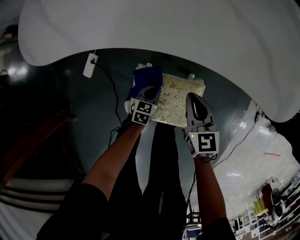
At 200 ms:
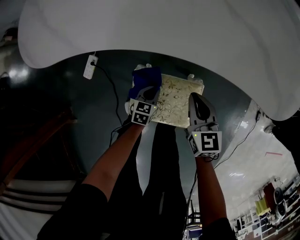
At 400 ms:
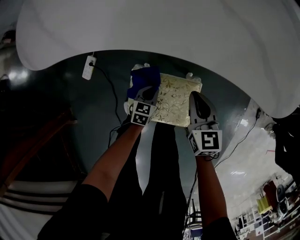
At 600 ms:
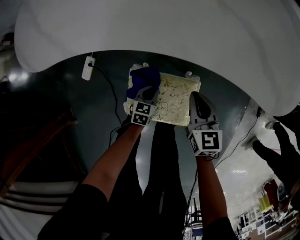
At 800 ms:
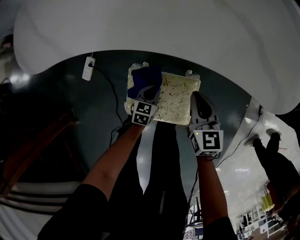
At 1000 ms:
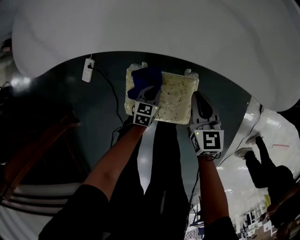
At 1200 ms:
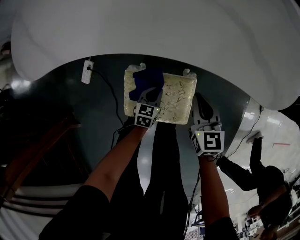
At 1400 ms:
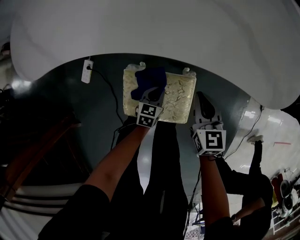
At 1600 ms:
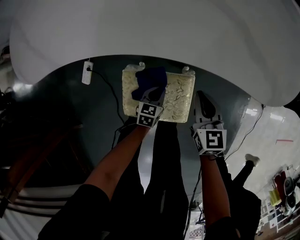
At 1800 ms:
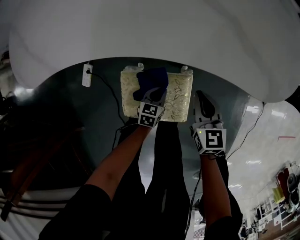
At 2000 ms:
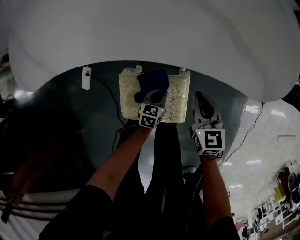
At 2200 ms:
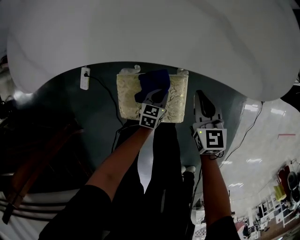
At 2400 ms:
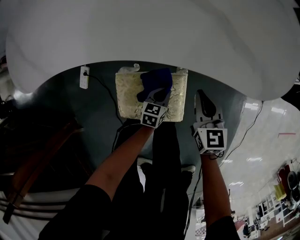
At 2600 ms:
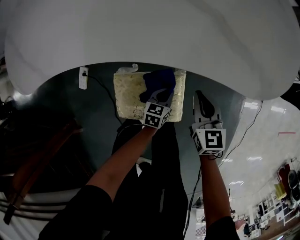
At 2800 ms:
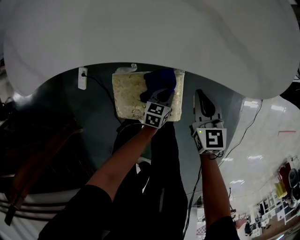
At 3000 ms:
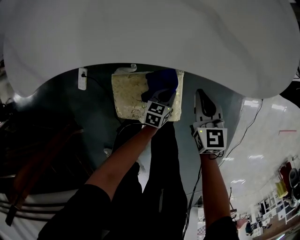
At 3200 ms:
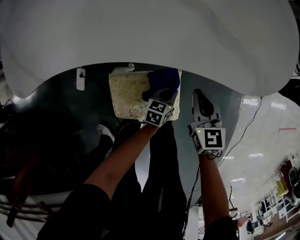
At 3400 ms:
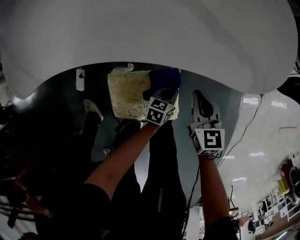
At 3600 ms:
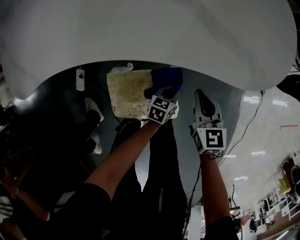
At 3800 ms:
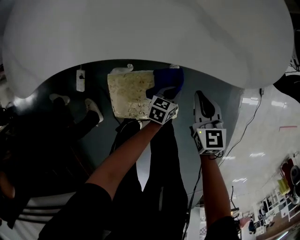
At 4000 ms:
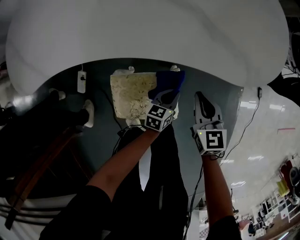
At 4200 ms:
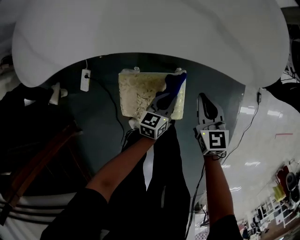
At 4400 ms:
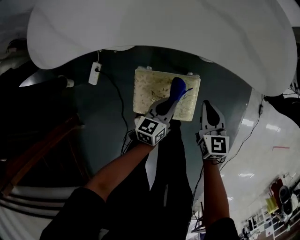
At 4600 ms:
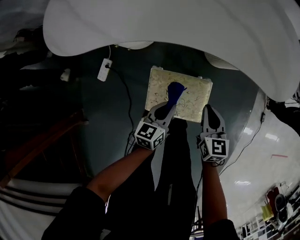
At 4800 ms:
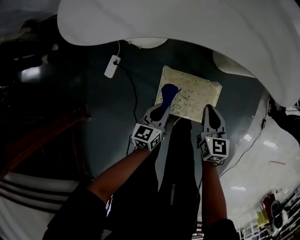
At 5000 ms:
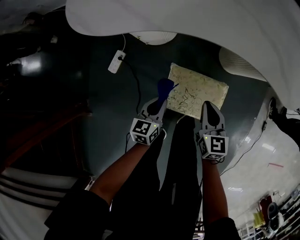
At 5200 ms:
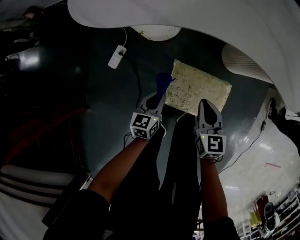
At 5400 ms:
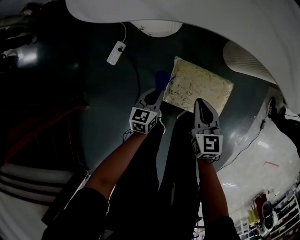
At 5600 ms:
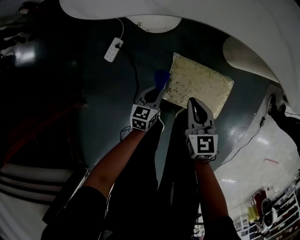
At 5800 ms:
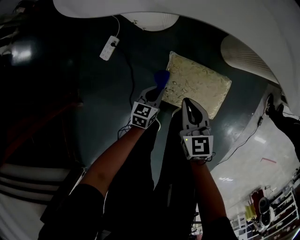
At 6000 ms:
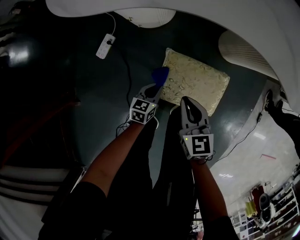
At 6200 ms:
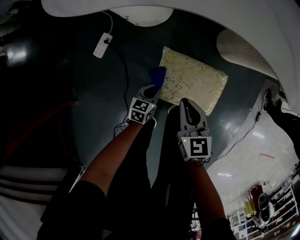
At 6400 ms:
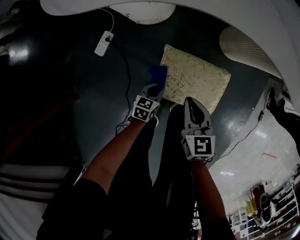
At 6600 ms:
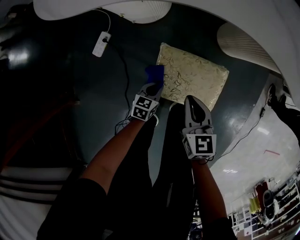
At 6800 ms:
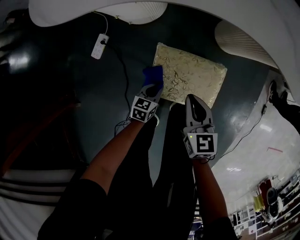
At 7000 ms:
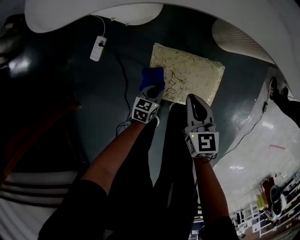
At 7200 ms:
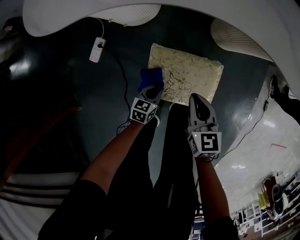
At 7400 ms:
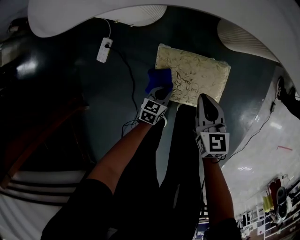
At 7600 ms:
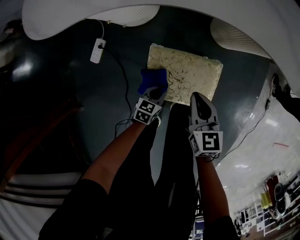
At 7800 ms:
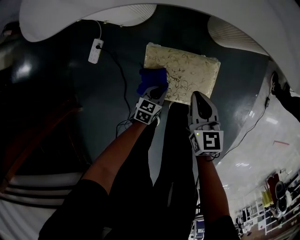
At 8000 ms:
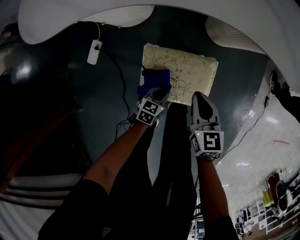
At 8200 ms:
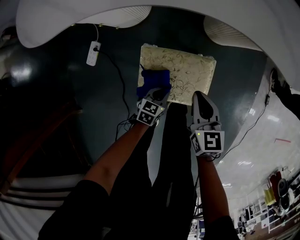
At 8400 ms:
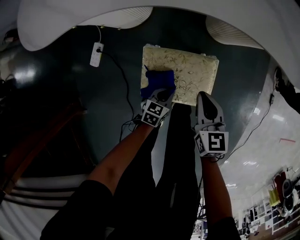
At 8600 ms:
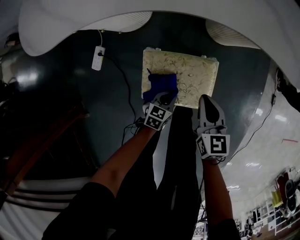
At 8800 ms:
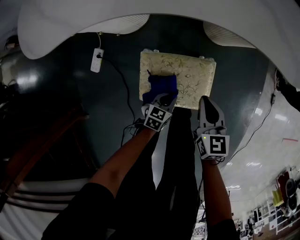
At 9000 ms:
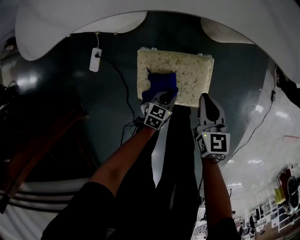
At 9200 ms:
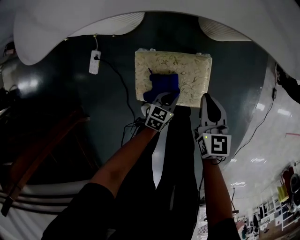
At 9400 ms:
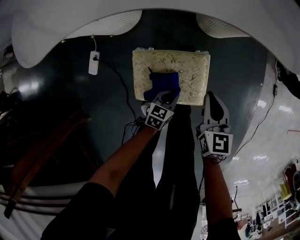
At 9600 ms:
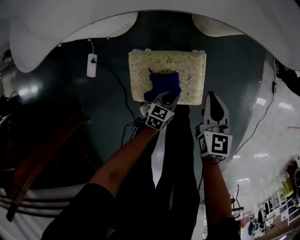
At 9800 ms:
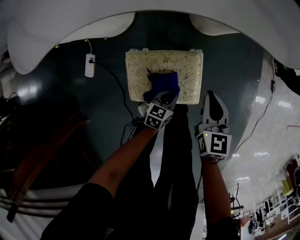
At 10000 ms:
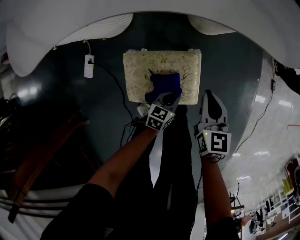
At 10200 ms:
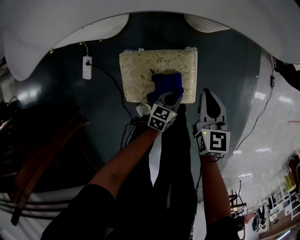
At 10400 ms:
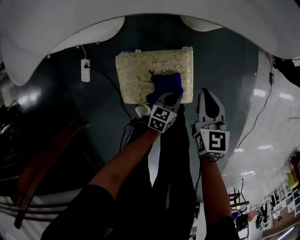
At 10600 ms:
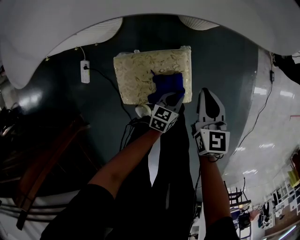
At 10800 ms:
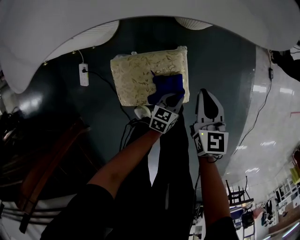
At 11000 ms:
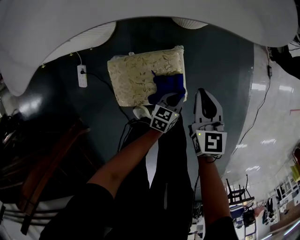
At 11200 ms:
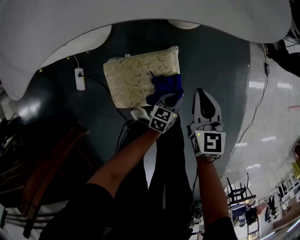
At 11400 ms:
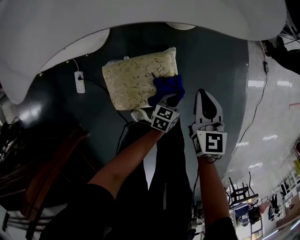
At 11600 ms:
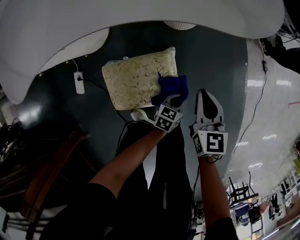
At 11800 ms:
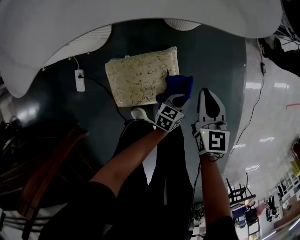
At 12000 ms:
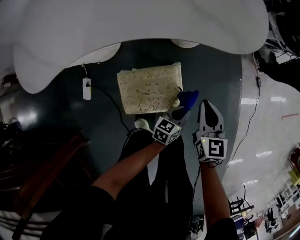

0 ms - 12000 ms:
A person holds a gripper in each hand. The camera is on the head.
0 ms - 1600 ms: Both grippers move to the right, about 10 cm.
1600 ms - 3000 ms: The left gripper heads to the right, covering some 10 cm, while the right gripper is displaced to the right by about 5 cm.
3000 ms - 4400 ms: The left gripper is displaced upward and to the left by roughly 15 cm, and rotates roughly 20 degrees. The right gripper moves backward, approximately 5 cm.
4400 ms - 6000 ms: The left gripper is displaced to the left and downward by approximately 25 cm, while the right gripper heads to the left, covering about 25 cm.
6000 ms - 7600 ms: Both grippers move to the right, some 10 cm.
7600 ms - 9000 ms: The grippers both shift to the right by approximately 10 cm.
9000 ms - 10400 ms: Both grippers travel together to the right, about 10 cm.
10400 ms - 12000 ms: The right gripper is displaced upward by roughly 10 cm. Meanwhile the left gripper is displaced upward and to the right by roughly 15 cm.

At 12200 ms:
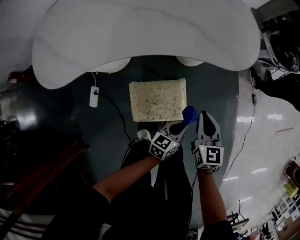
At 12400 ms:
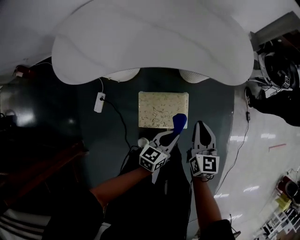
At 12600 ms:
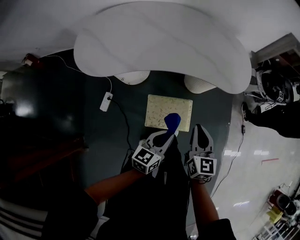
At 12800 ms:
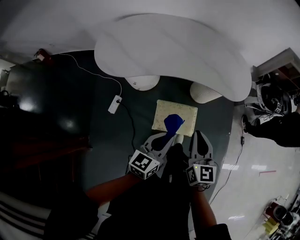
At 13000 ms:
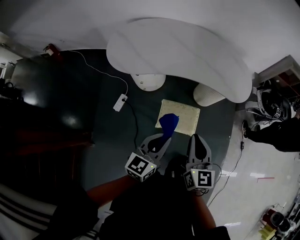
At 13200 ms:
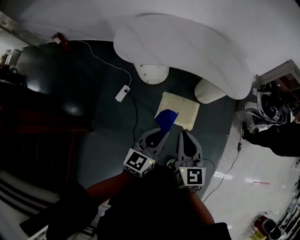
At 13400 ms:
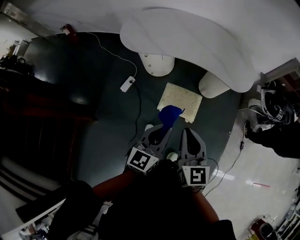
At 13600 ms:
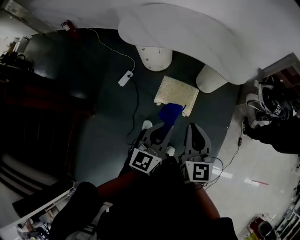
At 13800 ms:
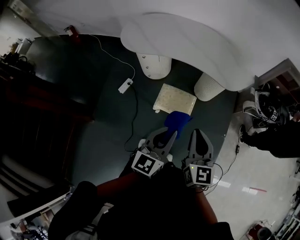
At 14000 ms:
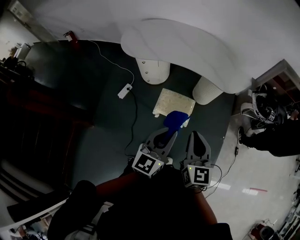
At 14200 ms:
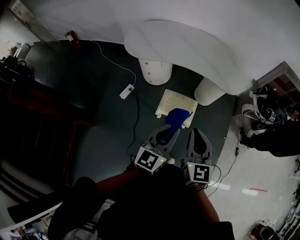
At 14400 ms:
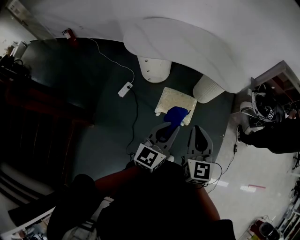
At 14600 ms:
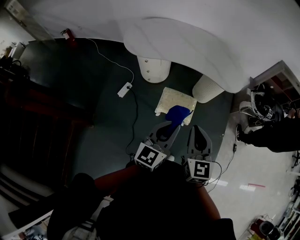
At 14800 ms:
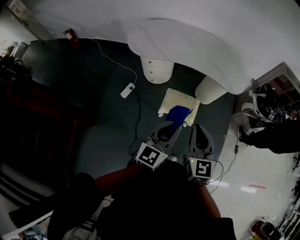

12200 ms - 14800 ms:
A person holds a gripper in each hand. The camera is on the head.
12200 ms - 13400 ms: The grippers both shift upward by approximately 40 cm. The left gripper swivels approximately 50 degrees, while the right gripper rotates approximately 30 degrees.
13400 ms - 14800 ms: The left gripper shifts about 10 cm upward and backward, and reaches about 5 cm to the right, then returns. Meanwhile the right gripper travels backward by some 5 cm, and moves roughly 10 cm to the right and comes back.

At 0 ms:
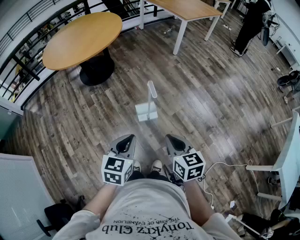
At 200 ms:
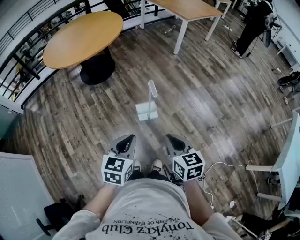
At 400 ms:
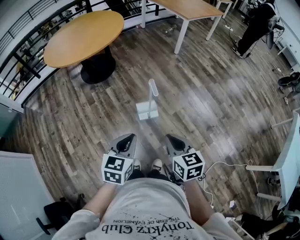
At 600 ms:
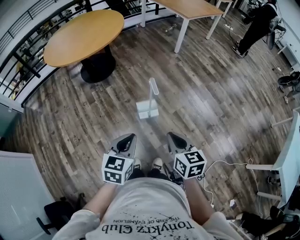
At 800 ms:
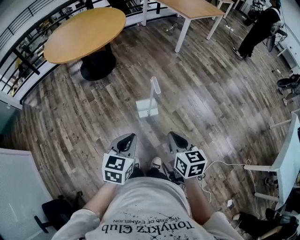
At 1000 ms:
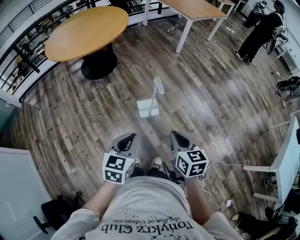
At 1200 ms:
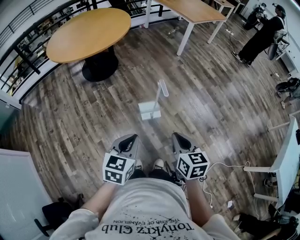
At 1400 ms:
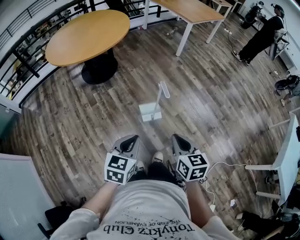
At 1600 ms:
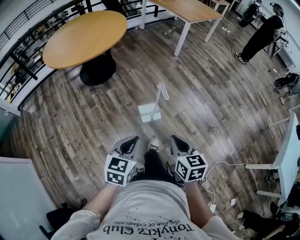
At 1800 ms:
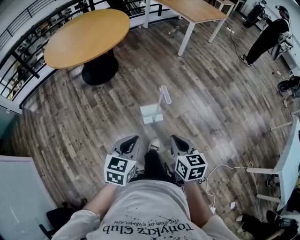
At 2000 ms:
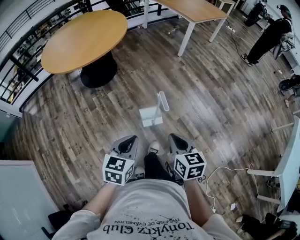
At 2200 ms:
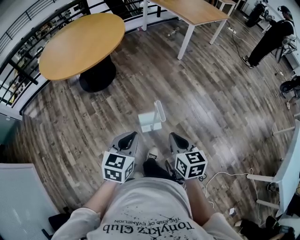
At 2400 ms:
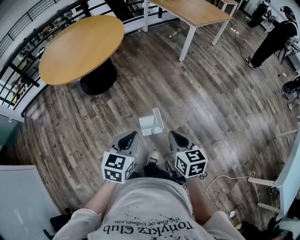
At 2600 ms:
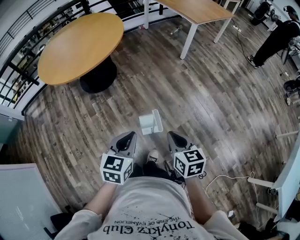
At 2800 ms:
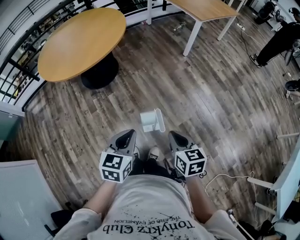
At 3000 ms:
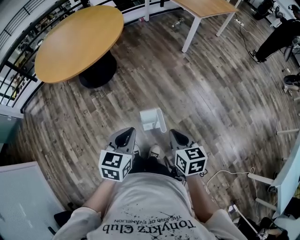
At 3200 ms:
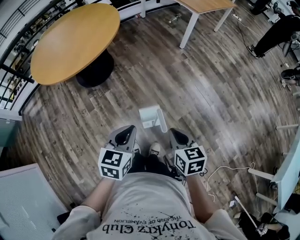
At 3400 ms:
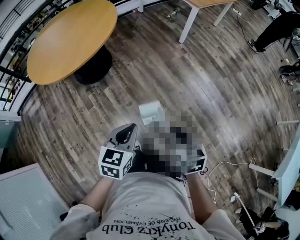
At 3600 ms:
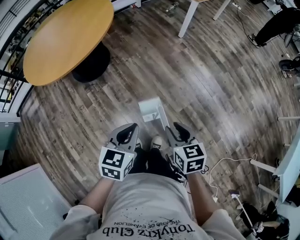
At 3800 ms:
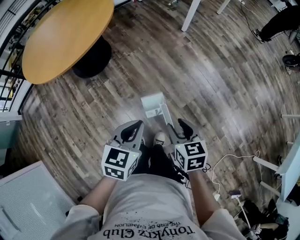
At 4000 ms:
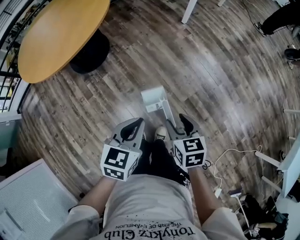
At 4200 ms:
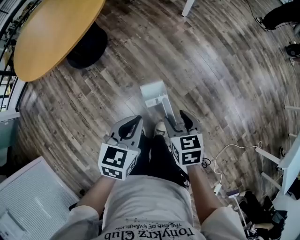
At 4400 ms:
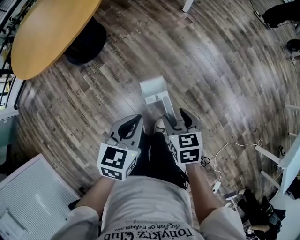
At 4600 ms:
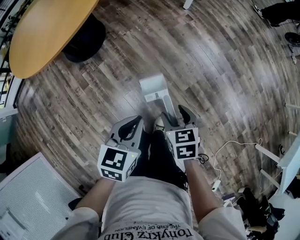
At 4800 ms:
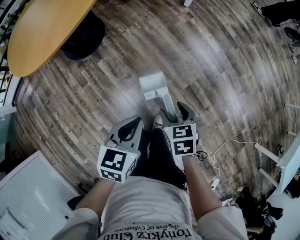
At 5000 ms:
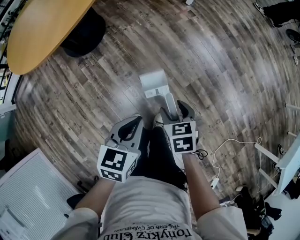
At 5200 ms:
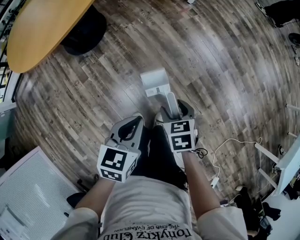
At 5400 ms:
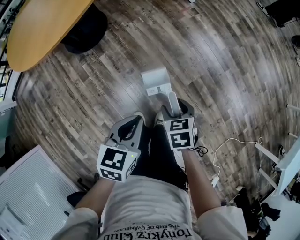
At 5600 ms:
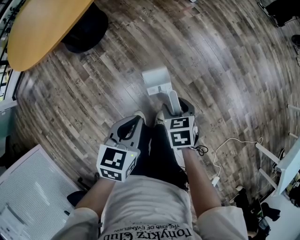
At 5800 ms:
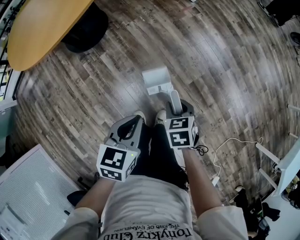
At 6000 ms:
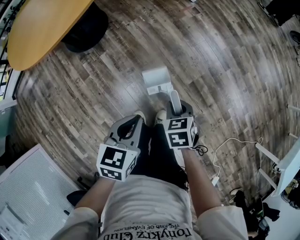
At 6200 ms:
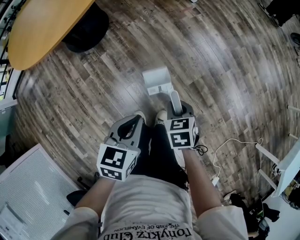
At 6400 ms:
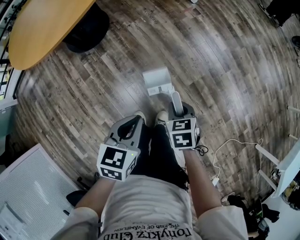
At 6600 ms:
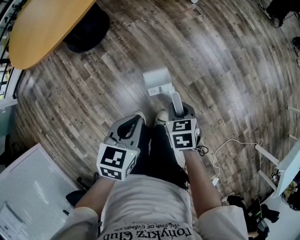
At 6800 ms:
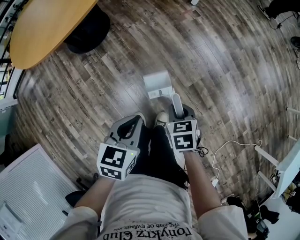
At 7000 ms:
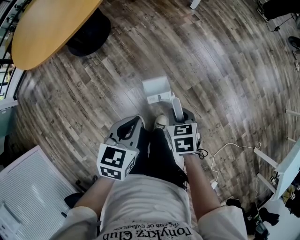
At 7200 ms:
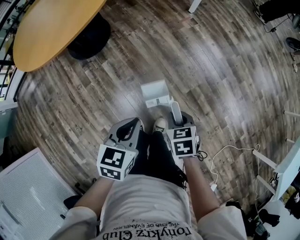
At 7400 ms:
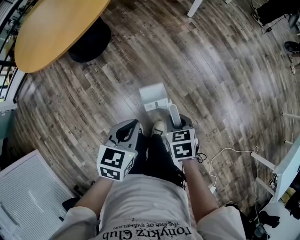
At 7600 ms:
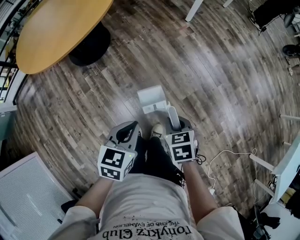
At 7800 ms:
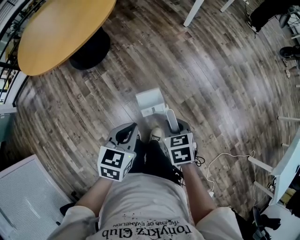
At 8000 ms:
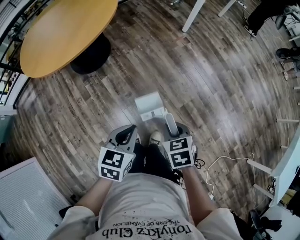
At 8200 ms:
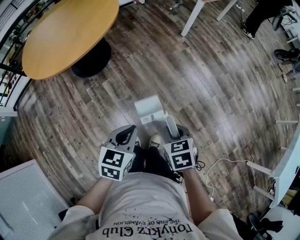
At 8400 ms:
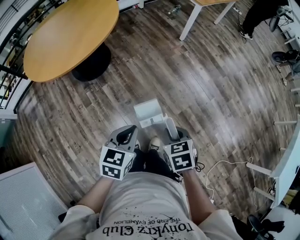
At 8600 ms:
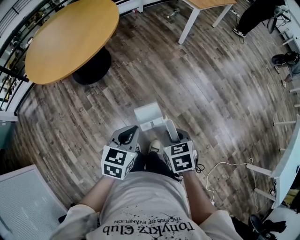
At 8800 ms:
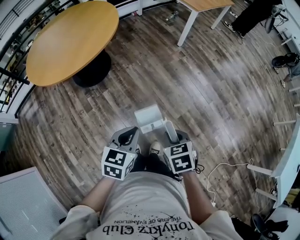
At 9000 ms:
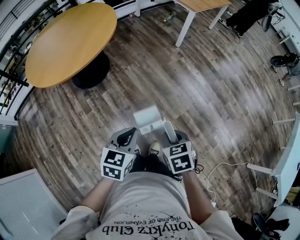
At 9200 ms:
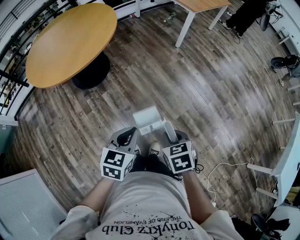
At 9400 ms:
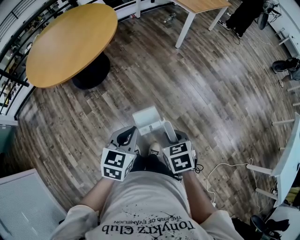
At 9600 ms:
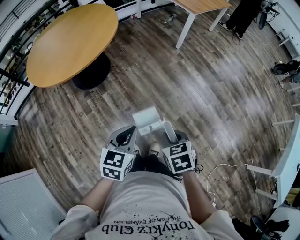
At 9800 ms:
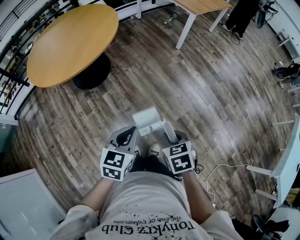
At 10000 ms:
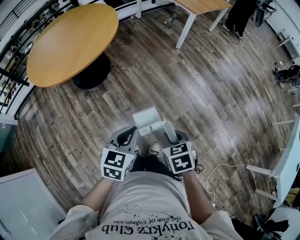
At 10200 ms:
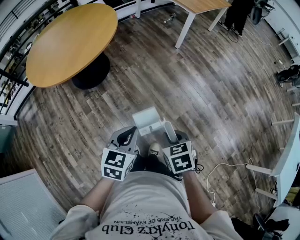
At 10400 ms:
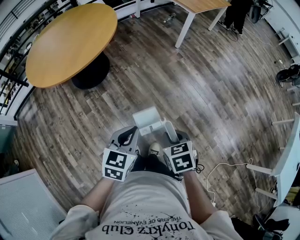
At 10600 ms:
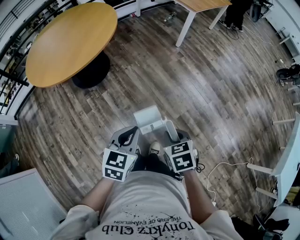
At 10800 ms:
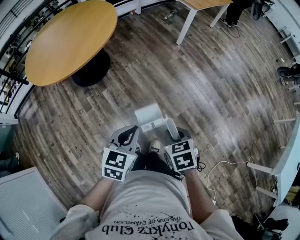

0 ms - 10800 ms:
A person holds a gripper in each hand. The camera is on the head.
0 ms - 1600 ms: The two grippers go some 5 cm to the left.
1600 ms - 3000 ms: The grippers both shift forward by about 25 cm.
3000 ms - 4600 ms: The two grippers go some 15 cm downward and forward. The right gripper opens.
4600 ms - 6200 ms: The right gripper travels downward by about 5 cm, and closes up.
6200 ms - 7800 ms: The left gripper heads upward, covering approximately 5 cm; the right gripper goes approximately 10 cm upward.
7800 ms - 9200 ms: The left gripper is displaced upward by some 5 cm; the right gripper heads upward and backward, covering some 10 cm.
9200 ms - 10800 ms: Both grippers stay put.
